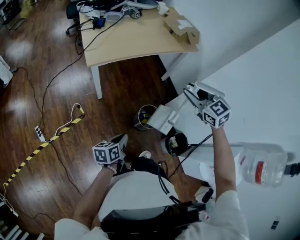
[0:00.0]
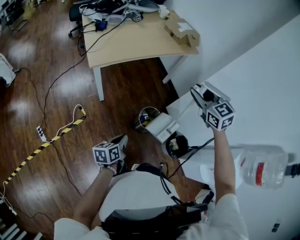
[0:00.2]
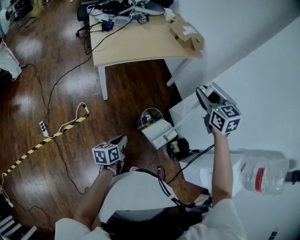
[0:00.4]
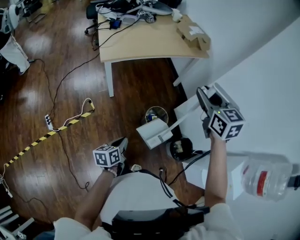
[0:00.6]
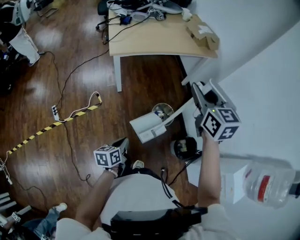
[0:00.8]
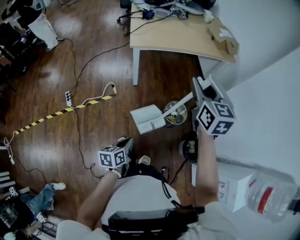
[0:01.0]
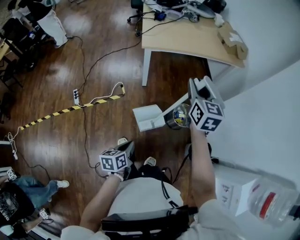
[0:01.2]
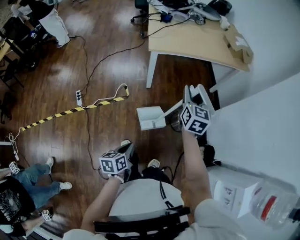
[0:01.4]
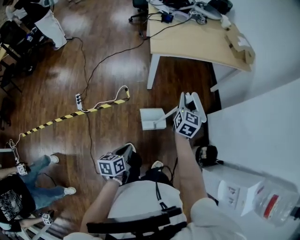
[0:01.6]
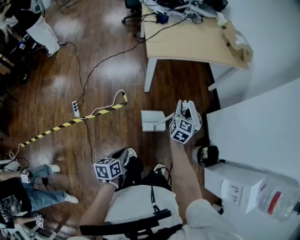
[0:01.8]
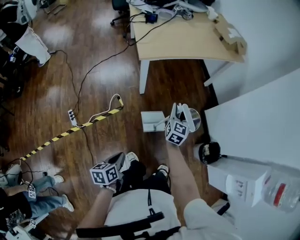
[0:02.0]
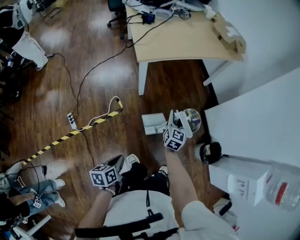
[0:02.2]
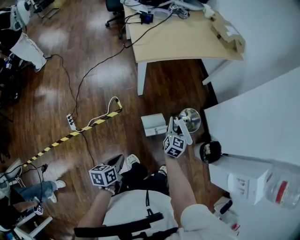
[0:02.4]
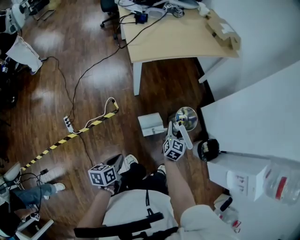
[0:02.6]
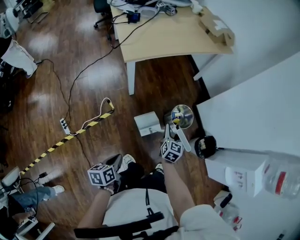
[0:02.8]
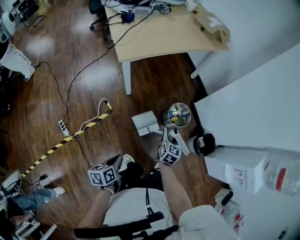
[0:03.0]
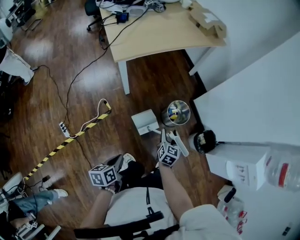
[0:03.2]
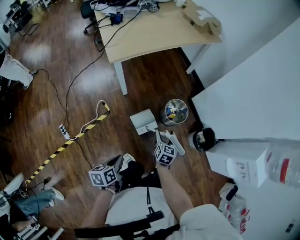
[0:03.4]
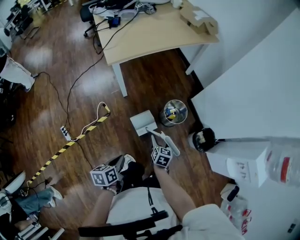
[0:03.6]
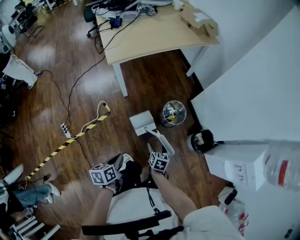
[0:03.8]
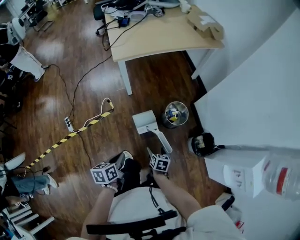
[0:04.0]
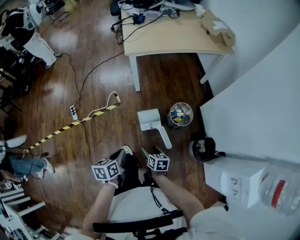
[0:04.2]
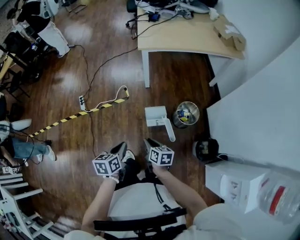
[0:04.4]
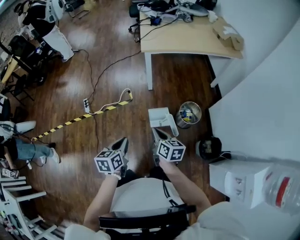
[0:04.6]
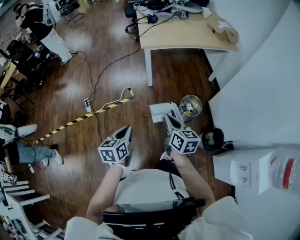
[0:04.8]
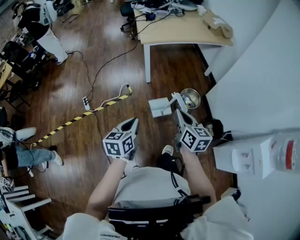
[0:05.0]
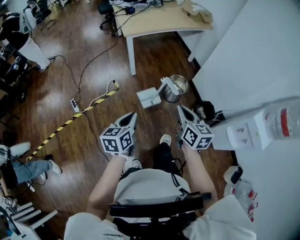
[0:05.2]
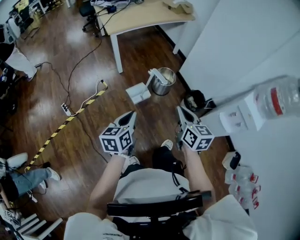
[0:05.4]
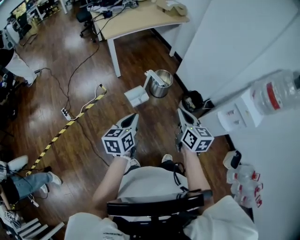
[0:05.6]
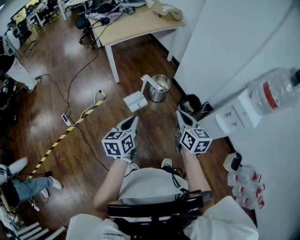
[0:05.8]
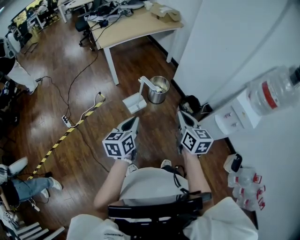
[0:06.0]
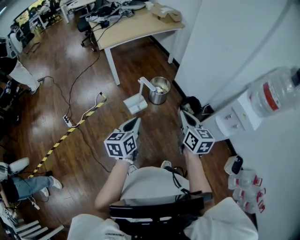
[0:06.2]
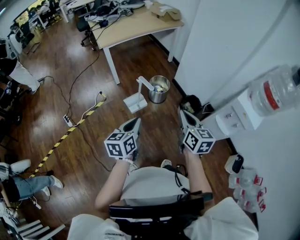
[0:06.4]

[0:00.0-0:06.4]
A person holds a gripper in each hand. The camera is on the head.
0:00.0 to 0:01.6: The right gripper is displaced to the left and downward by approximately 25 cm, and rotates some 40 degrees, while the left gripper goes about 25 cm backward and to the left, and rotates roughly 20 degrees.
0:01.6 to 0:03.2: The right gripper moves downward, to the right and backward, roughly 25 cm, changes its angle by some 30 degrees, and opens; the left gripper heads forward, covering about 5 cm.
0:03.2 to 0:04.8: The left gripper shifts approximately 15 cm upward, and swivels some 30 degrees, while the right gripper moves upward, approximately 20 cm, turns by roughly 50 degrees, and closes its fingers.
0:04.8 to 0:06.4: The right gripper moves about 30 cm, and swivels roughly 30 degrees; the left gripper ends up about 20 cm from where it was, and turns by roughly 30 degrees.

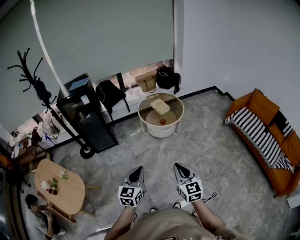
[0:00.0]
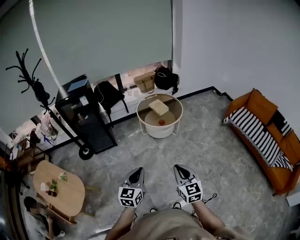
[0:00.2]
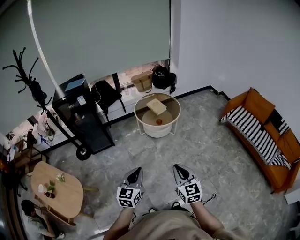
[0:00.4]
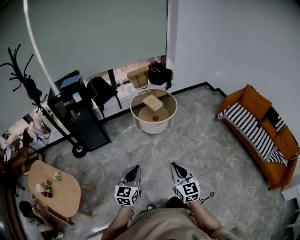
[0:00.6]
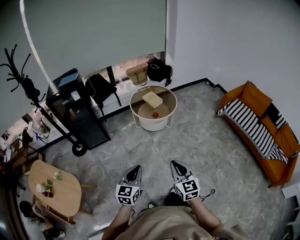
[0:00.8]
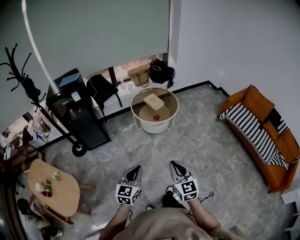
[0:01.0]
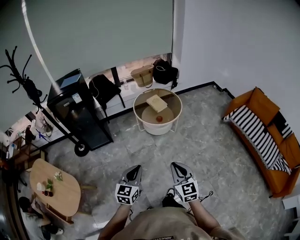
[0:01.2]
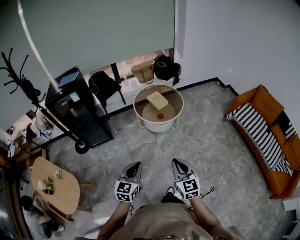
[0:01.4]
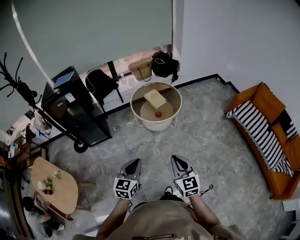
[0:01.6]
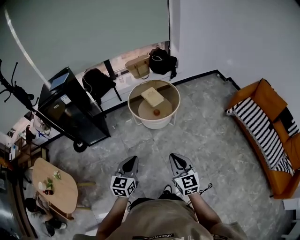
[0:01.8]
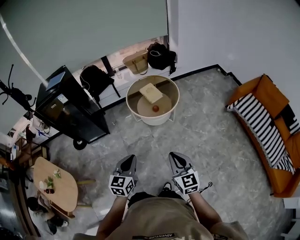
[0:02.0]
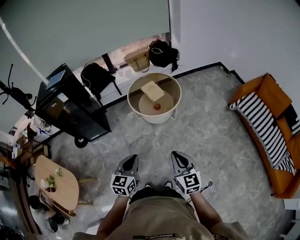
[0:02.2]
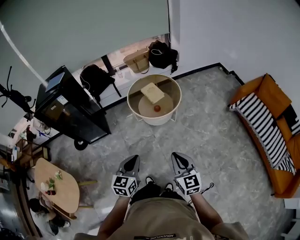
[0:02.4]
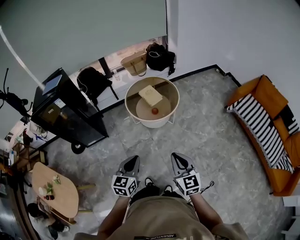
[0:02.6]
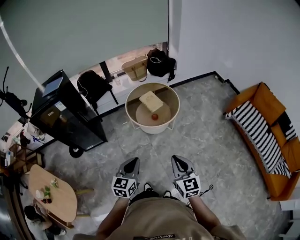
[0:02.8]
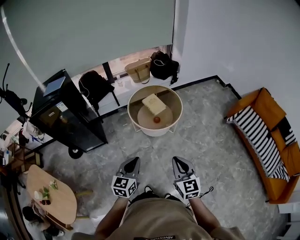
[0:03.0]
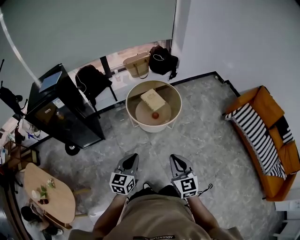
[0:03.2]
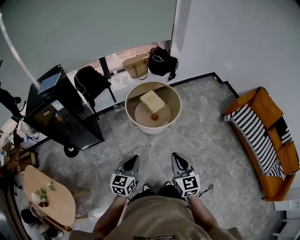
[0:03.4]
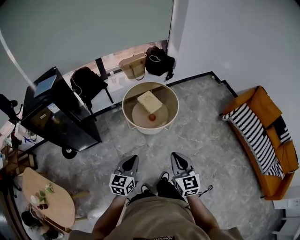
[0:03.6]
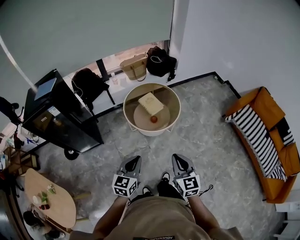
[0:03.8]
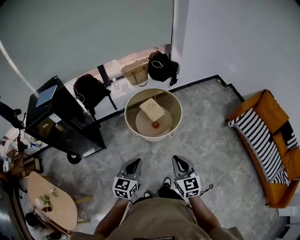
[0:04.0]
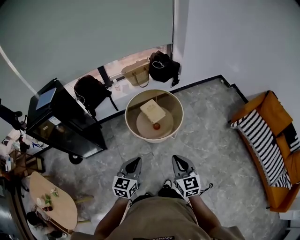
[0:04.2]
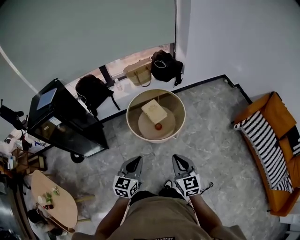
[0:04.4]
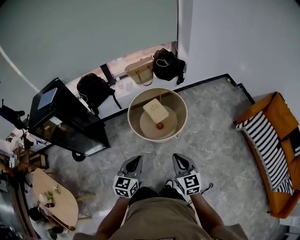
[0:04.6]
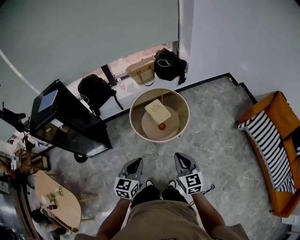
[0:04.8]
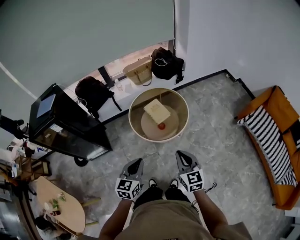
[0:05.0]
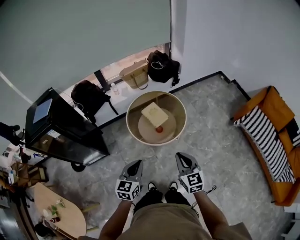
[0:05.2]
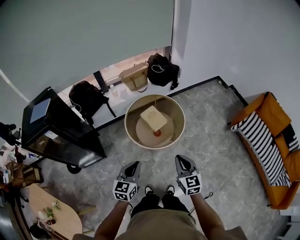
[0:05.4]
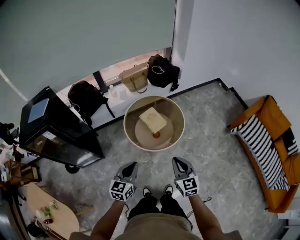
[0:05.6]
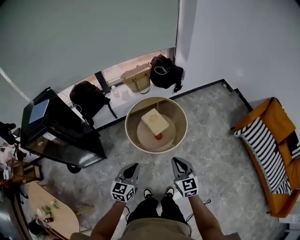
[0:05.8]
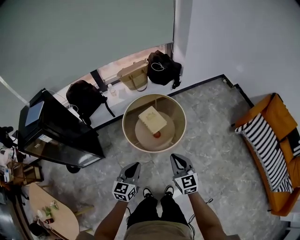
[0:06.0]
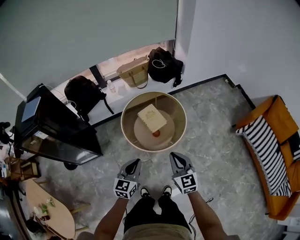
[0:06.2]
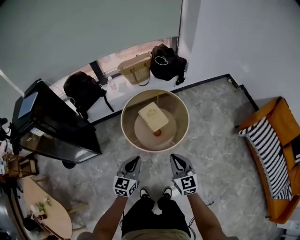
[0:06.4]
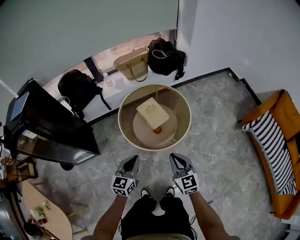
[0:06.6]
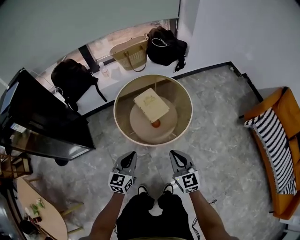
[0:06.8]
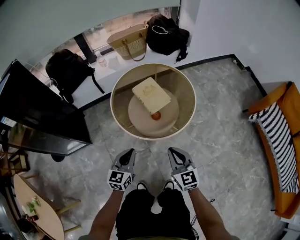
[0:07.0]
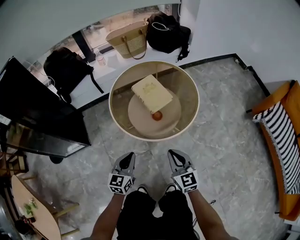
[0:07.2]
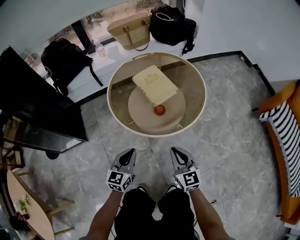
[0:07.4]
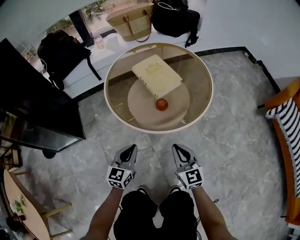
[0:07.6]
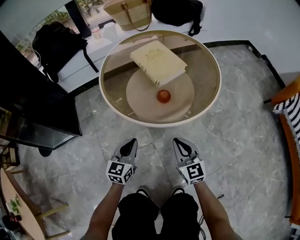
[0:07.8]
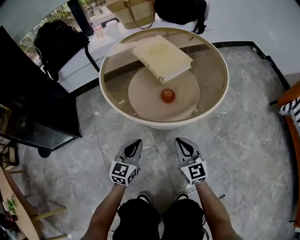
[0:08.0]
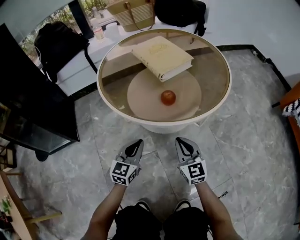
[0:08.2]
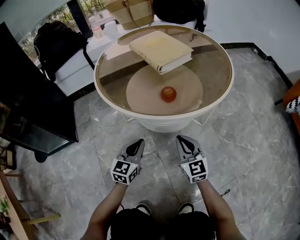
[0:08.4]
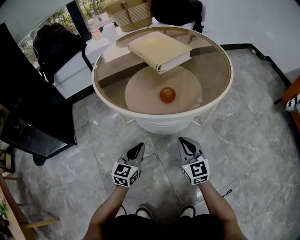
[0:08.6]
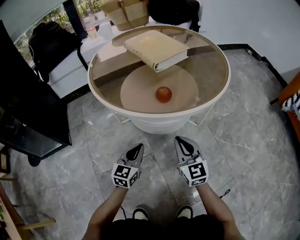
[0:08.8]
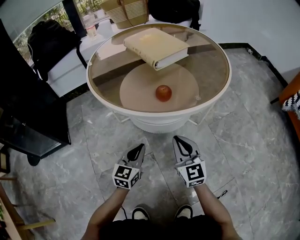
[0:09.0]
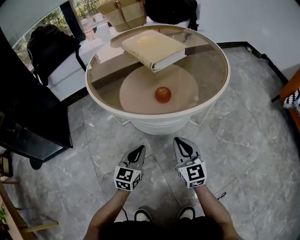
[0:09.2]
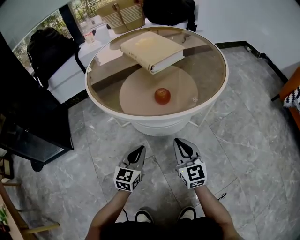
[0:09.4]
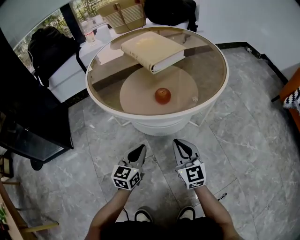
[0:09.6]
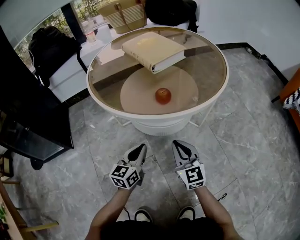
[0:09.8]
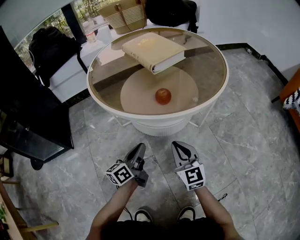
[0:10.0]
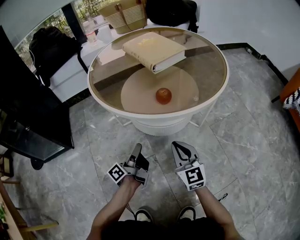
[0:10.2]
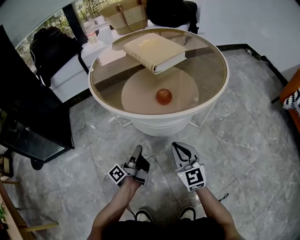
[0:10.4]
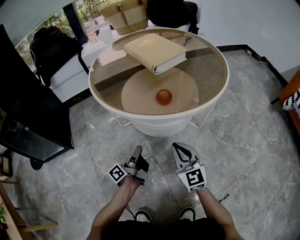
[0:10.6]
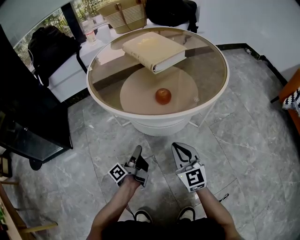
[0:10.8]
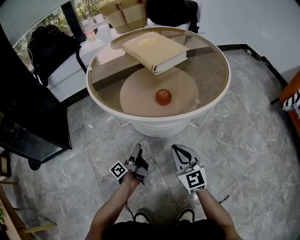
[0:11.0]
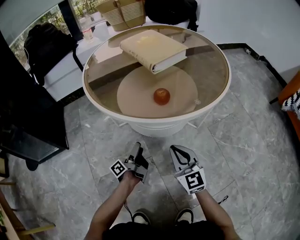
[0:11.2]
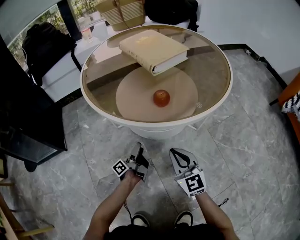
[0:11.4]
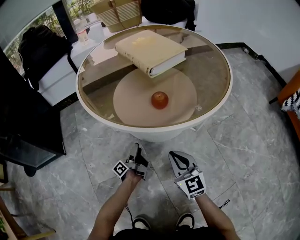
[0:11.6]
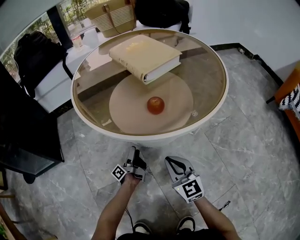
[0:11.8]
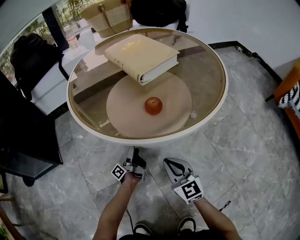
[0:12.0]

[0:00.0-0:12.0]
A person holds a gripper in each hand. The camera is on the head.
0:00.0 to 0:01.6: The two grippers go approximately 15 cm forward.
0:01.6 to 0:03.0: Both grippers travel together forward, about 15 cm.
0:03.0 to 0:04.4: Both grippers move forward, roughly 15 cm.
0:04.4 to 0:06.0: The two grippers go about 15 cm forward and downward.
0:06.0 to 0:07.6: Both grippers move downward, approximately 50 cm.
0:07.6 to 0:09.0: The grippers both shift downward by some 20 cm.
0:09.0 to 0:10.4: The left gripper rotates around the line of its fingers by some 80 degrees, counterclockwise from behind.
0:10.4 to 0:12.0: The left gripper heads downward and forward, covering roughly 15 cm, and opens its fingers.

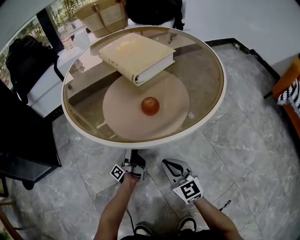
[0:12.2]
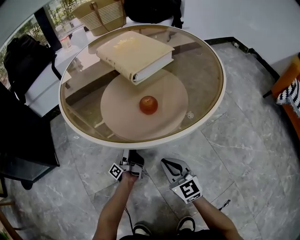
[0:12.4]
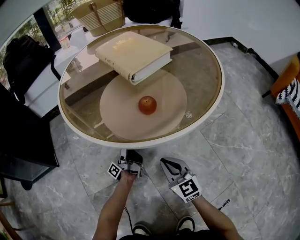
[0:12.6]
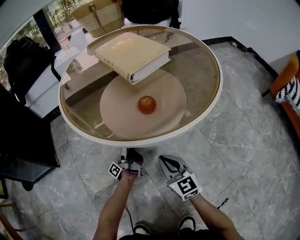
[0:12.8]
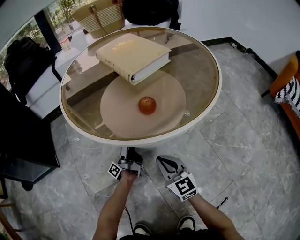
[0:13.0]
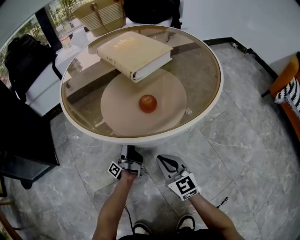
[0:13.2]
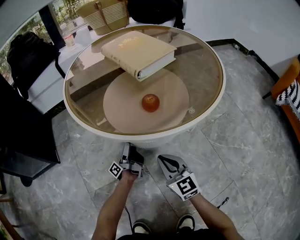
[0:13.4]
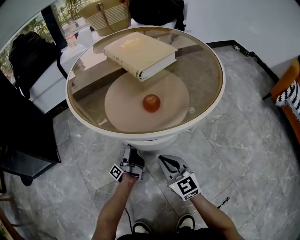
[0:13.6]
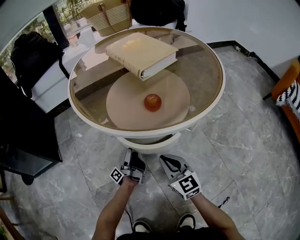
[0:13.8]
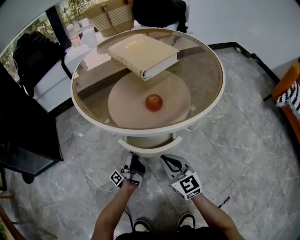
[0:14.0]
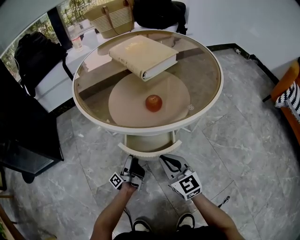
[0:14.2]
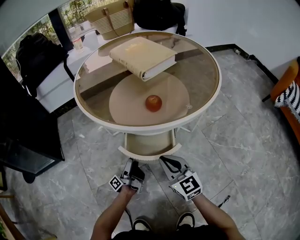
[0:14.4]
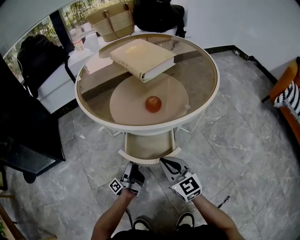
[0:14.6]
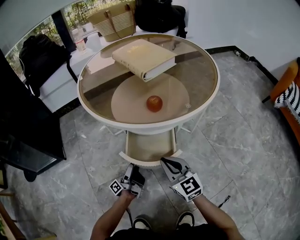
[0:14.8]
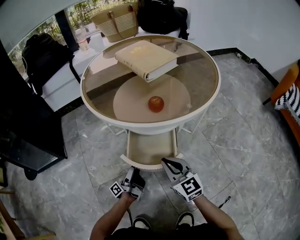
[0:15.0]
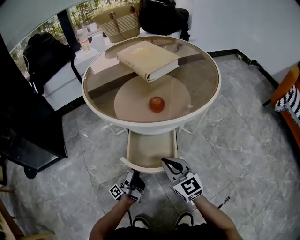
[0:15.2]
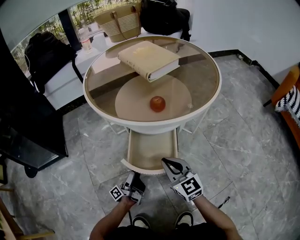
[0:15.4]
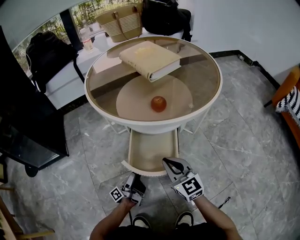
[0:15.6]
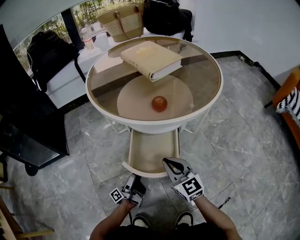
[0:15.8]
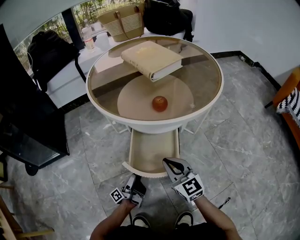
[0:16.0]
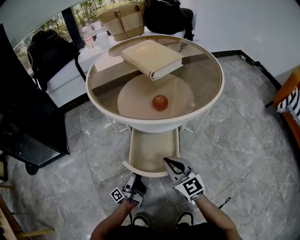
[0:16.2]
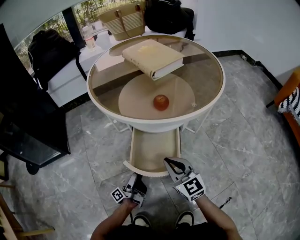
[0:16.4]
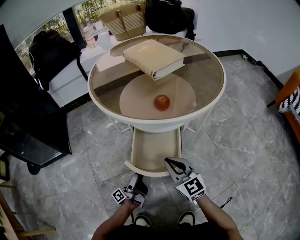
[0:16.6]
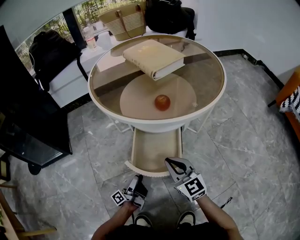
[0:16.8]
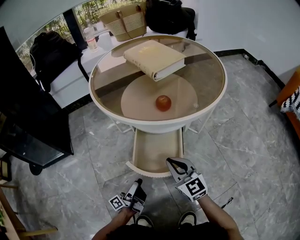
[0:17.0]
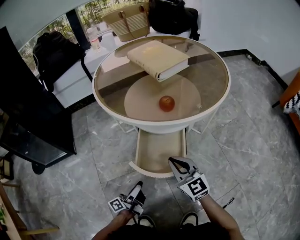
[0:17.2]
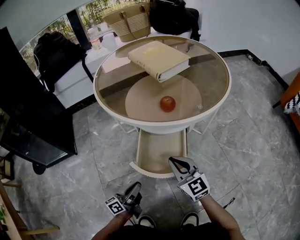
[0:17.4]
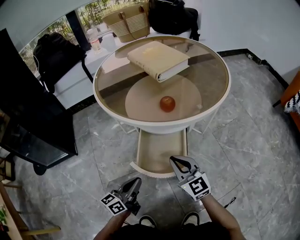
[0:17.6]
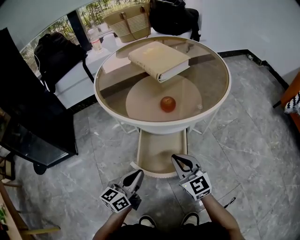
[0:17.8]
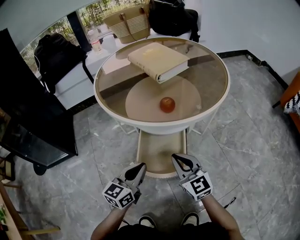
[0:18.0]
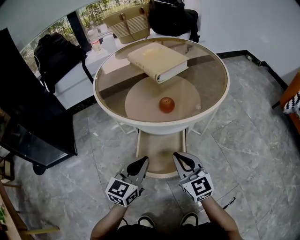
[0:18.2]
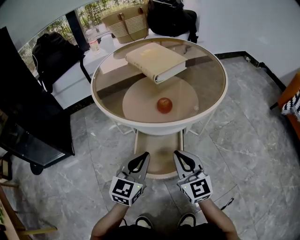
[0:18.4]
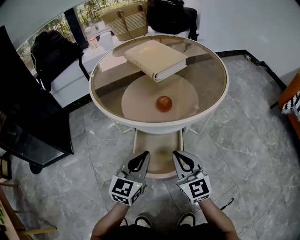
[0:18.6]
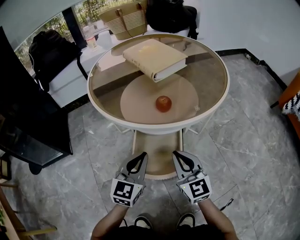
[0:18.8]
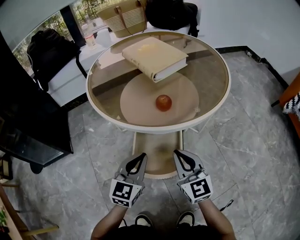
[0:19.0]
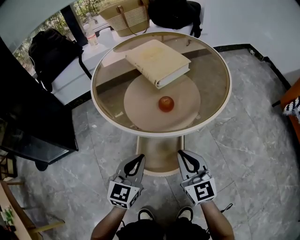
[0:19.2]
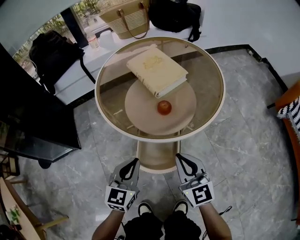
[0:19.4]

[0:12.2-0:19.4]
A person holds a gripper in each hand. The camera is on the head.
0:12.2 to 0:13.6: The grippers make only small movements.
0:13.6 to 0:15.0: The left gripper is displaced backward by roughly 15 cm.
0:15.0 to 0:16.6: The left gripper shifts roughly 5 cm backward.
0:16.6 to 0:18.0: The left gripper travels upward by some 20 cm, rotates around the line of its fingers by some 80 degrees, clockwise from behind, and closes.
0:18.0 to 0:19.4: The grippers both shift upward by approximately 15 cm.
